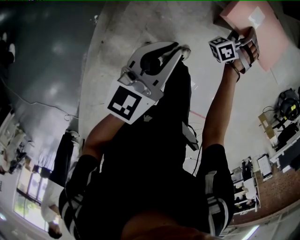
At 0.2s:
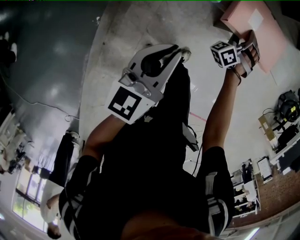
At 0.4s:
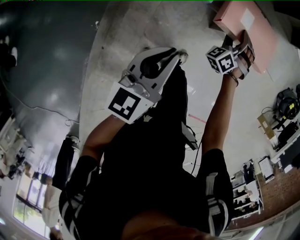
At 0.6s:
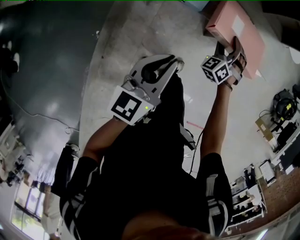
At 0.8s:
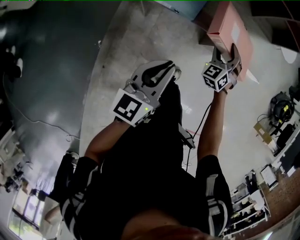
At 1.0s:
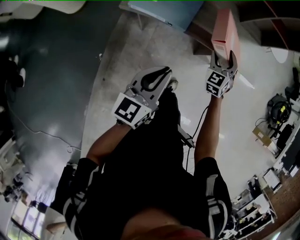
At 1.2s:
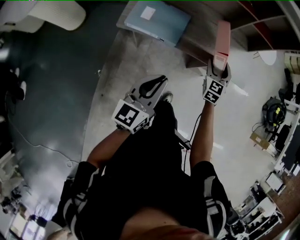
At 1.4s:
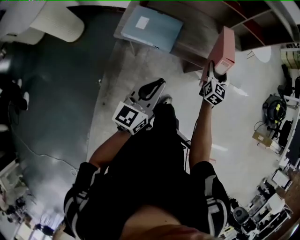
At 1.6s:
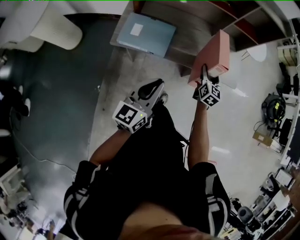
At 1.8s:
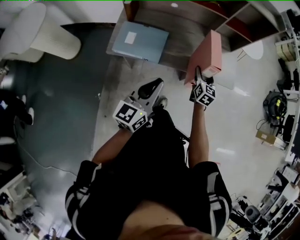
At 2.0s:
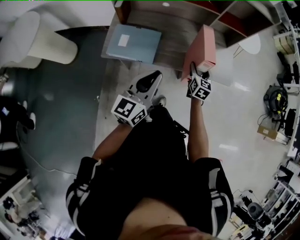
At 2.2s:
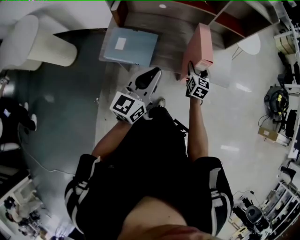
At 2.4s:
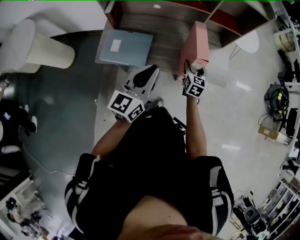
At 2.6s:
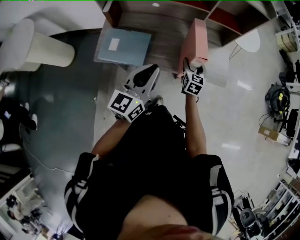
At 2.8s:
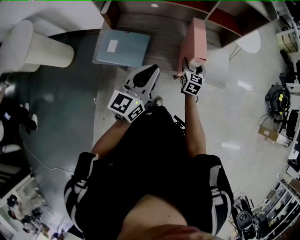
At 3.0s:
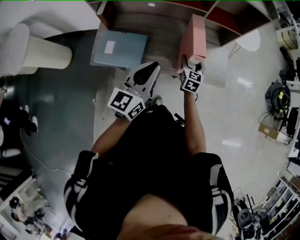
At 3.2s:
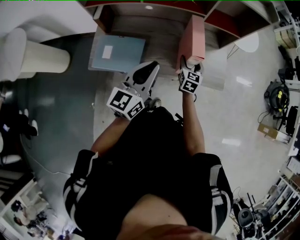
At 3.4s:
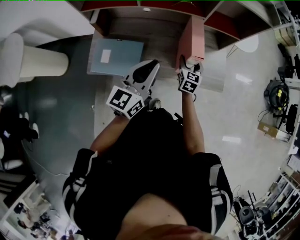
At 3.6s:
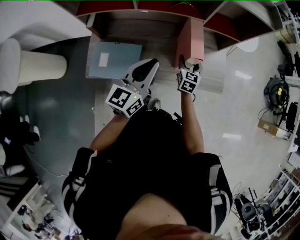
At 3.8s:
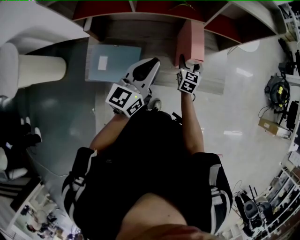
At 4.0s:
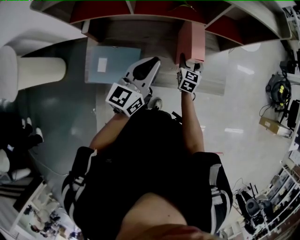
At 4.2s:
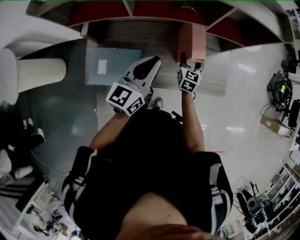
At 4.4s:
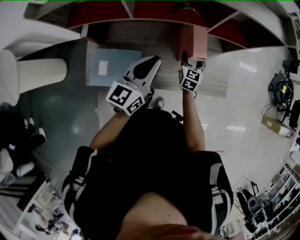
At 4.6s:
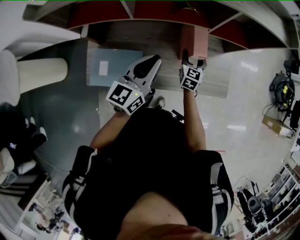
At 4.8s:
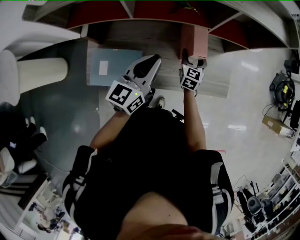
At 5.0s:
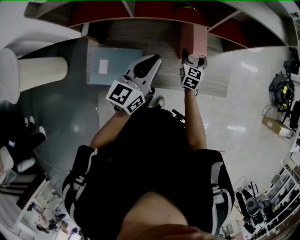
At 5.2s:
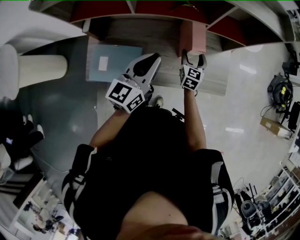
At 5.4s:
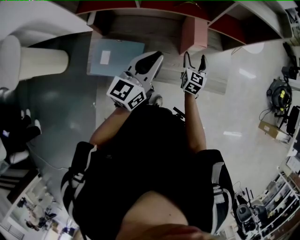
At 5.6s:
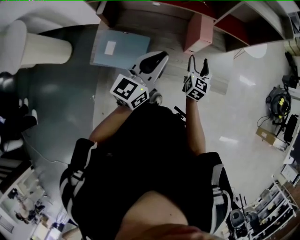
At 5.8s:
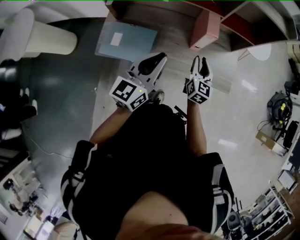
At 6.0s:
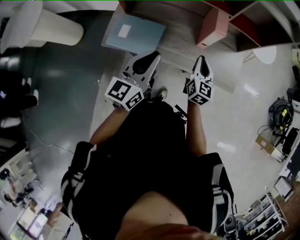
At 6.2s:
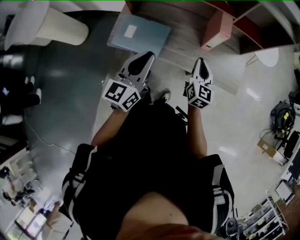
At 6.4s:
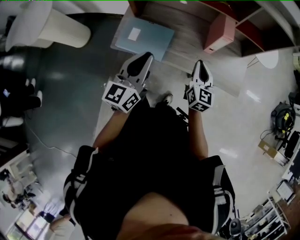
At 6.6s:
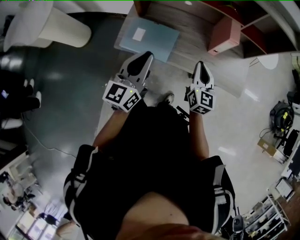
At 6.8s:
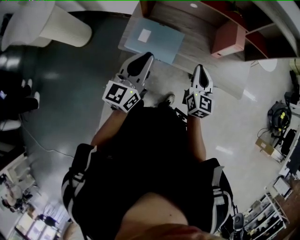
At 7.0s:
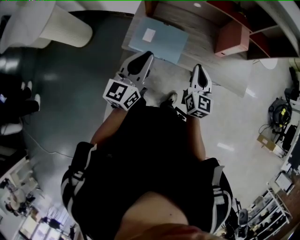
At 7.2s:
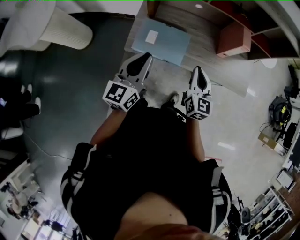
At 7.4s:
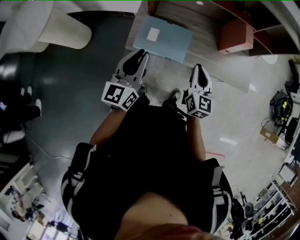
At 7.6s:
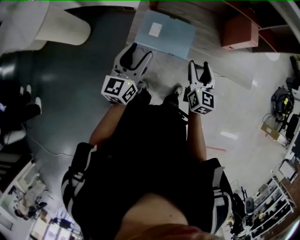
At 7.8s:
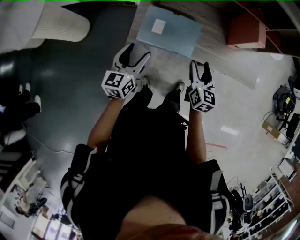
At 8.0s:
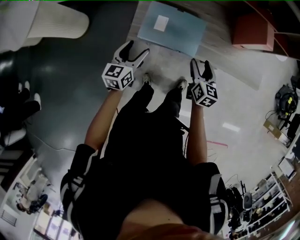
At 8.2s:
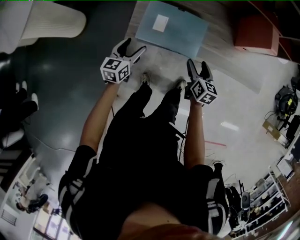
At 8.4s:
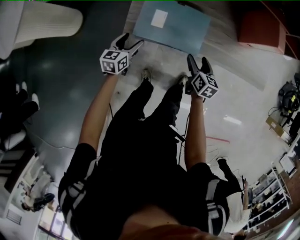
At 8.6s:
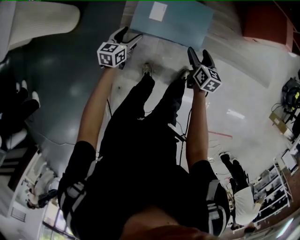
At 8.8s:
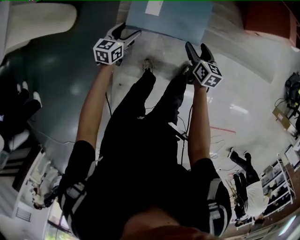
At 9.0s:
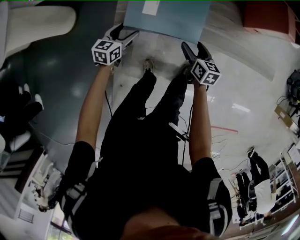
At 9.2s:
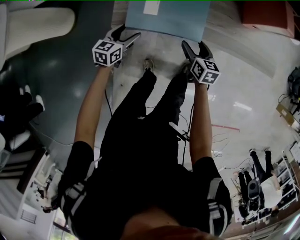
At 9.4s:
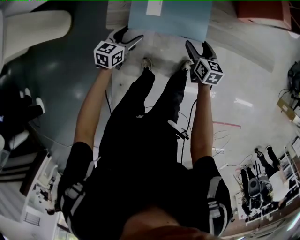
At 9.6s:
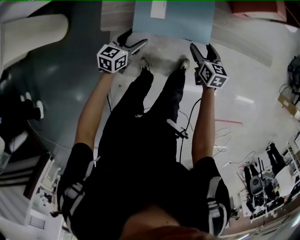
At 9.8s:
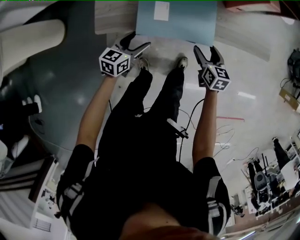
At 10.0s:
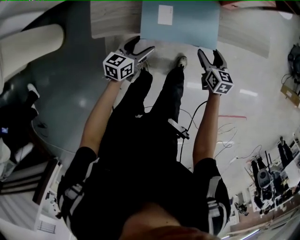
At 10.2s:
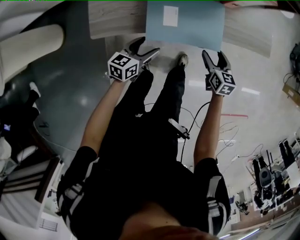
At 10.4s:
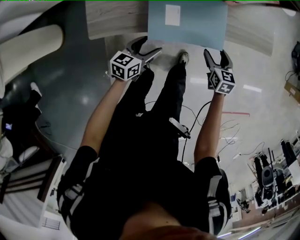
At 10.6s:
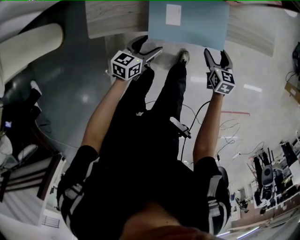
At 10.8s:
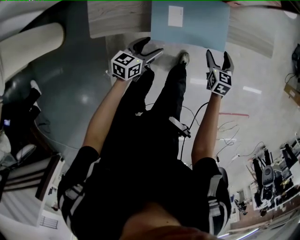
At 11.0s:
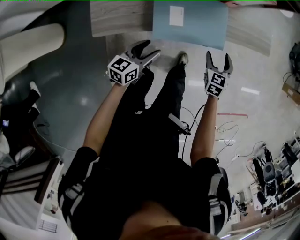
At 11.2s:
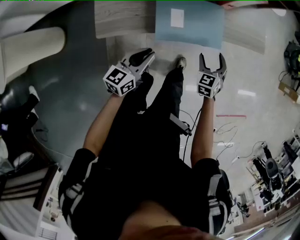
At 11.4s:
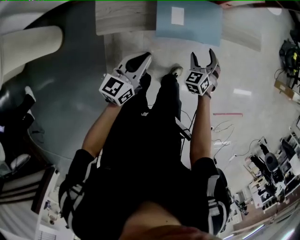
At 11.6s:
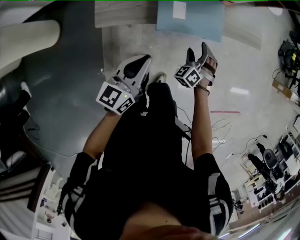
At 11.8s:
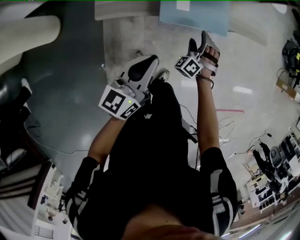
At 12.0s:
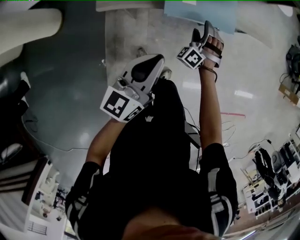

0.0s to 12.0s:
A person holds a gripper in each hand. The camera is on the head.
0.0s to 1.6s: The grippers both shift upward by approximately 20 cm. The right gripper rolls clockwise, seen from behind, by some 90 degrees.
1.6s to 3.0s: The right gripper heads forward, covering about 10 cm; the left gripper travels forward and to the right by roughly 20 cm.
3.0s to 4.4s: Both grippers move forward, approximately 15 cm.
4.4s to 6.0s: The left gripper moves backward, about 20 cm. Meanwhile the right gripper travels backward and upward by approximately 20 cm, and closes up.
6.0s to 7.6s: The two grippers go approximately 25 cm to the left. The right gripper opens; the left gripper opens its fingers.
7.6s to 9.0s: Both grippers move downward, some 30 cm. The left gripper changes its angle by some 30 degrees. The right gripper rotates approximately 30 degrees.
9.0s to 10.4s: The two grippers go approximately 20 cm to the right.
10.4s to 12.0s: The right gripper is displaced to the left and backward by some 10 cm, and rolls counterclockwise, seen from behind, by about 70 degrees. The left gripper is displaced upward and backward by approximately 25 cm, swivels approximately 30 degrees, and closes its fingers.

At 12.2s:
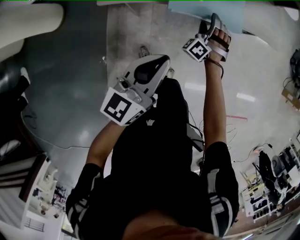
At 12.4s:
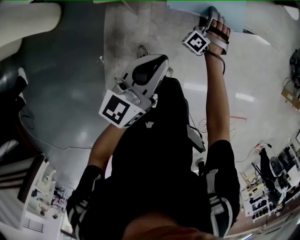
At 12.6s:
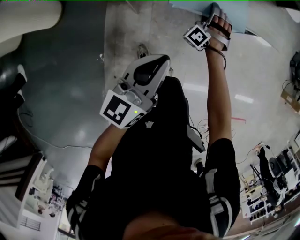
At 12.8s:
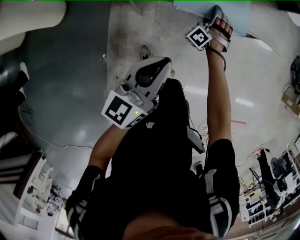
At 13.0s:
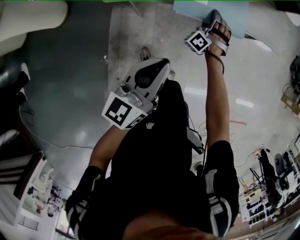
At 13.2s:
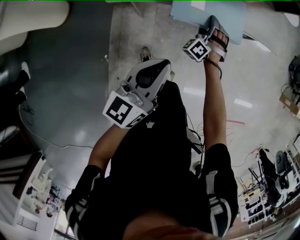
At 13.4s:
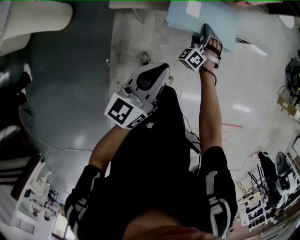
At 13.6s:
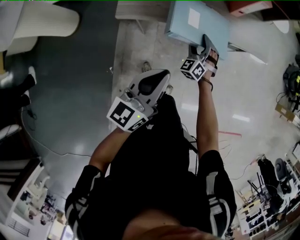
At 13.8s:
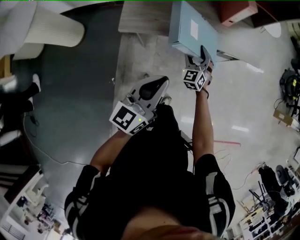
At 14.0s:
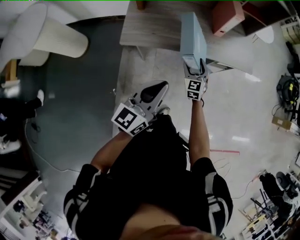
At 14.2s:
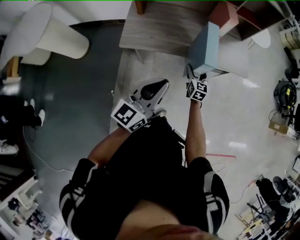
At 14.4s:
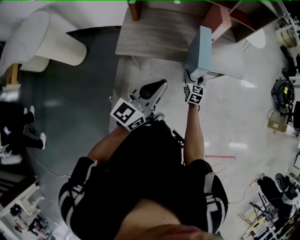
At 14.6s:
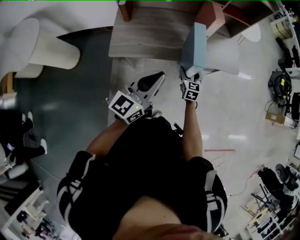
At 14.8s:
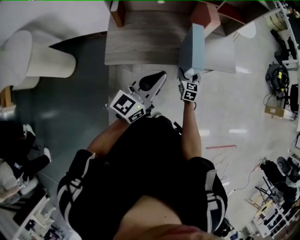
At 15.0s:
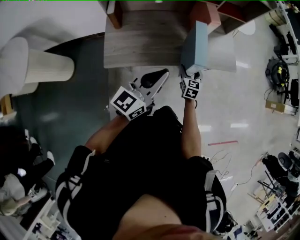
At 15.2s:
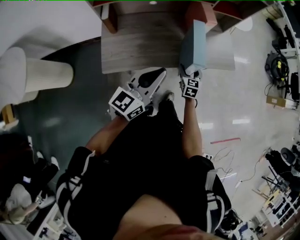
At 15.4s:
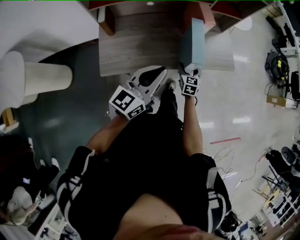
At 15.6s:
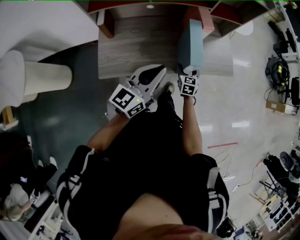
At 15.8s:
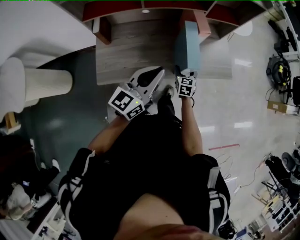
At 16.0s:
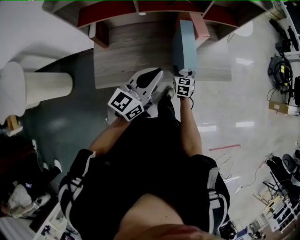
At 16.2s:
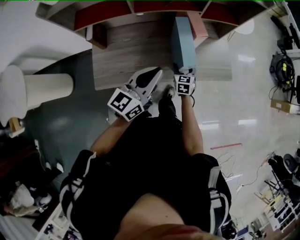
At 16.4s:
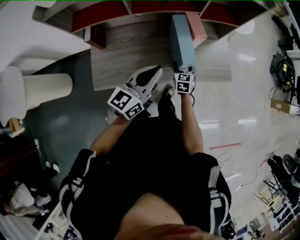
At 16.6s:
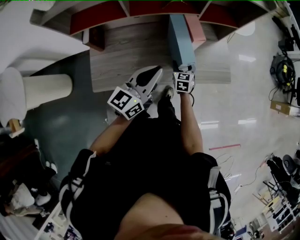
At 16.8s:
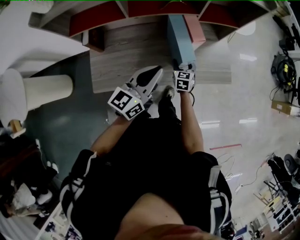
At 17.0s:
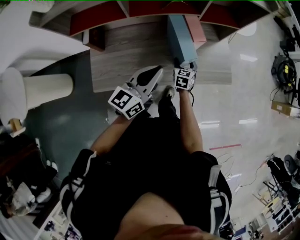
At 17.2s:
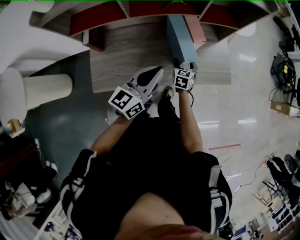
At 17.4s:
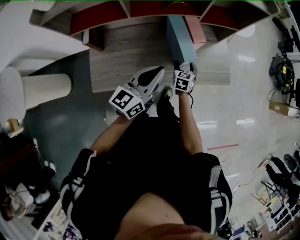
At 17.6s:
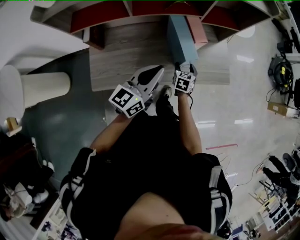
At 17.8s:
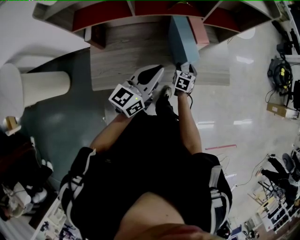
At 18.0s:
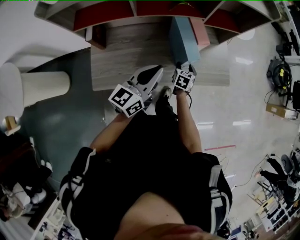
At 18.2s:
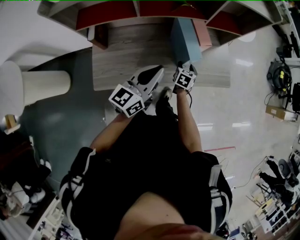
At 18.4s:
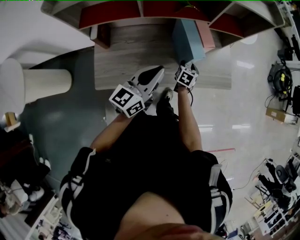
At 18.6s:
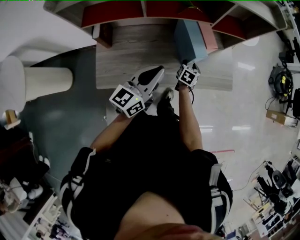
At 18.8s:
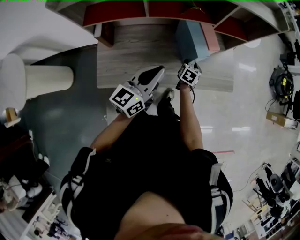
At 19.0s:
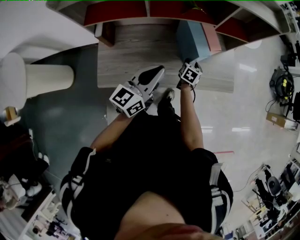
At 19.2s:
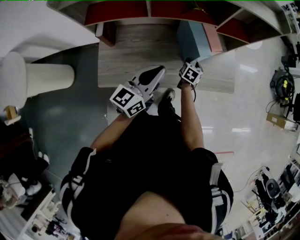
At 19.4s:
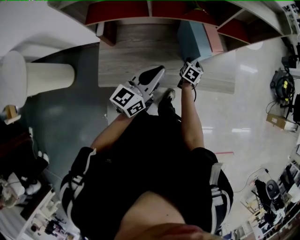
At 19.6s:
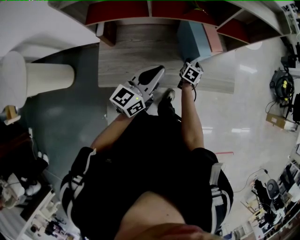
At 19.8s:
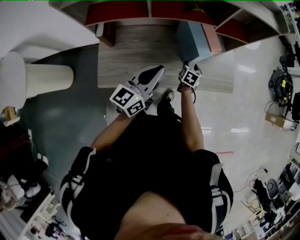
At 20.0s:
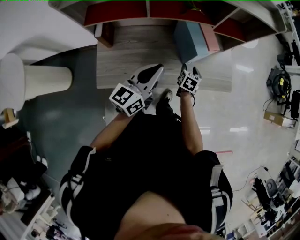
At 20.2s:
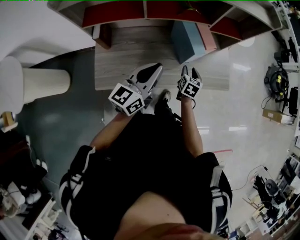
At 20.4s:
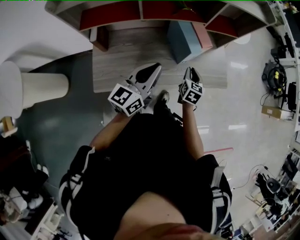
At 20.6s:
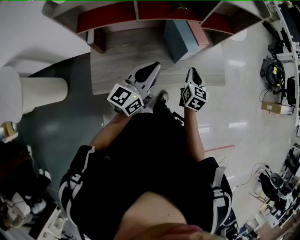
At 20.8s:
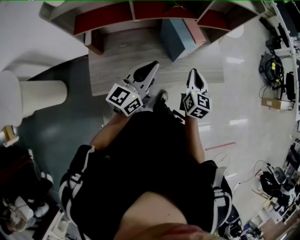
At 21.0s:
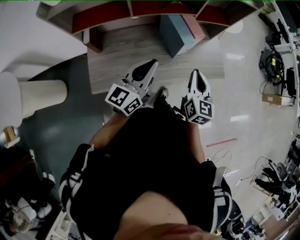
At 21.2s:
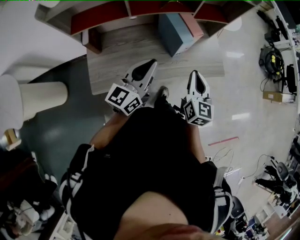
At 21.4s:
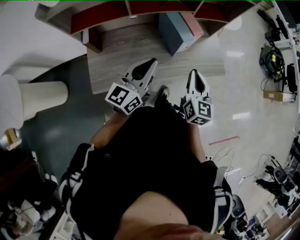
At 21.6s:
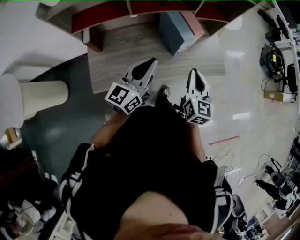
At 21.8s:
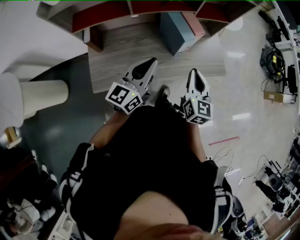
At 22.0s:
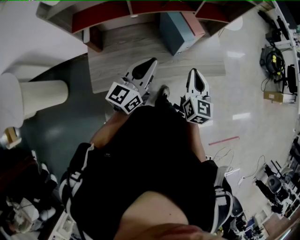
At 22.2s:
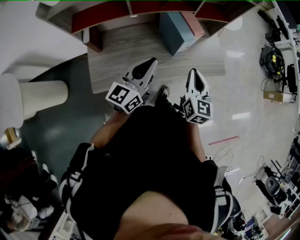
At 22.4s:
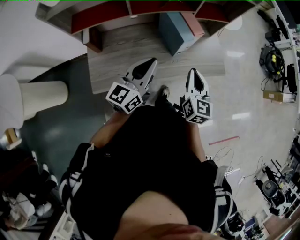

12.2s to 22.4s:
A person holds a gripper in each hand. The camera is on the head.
12.2s to 13.6s: The left gripper shifts approximately 10 cm upward. The right gripper travels upward and backward by approximately 10 cm, and changes its angle by roughly 30 degrees.
13.6s to 15.2s: The right gripper travels to the right, forward and upward by about 15 cm, and rolls clockwise, seen from behind, by some 60 degrees. Meanwhile the left gripper shifts approximately 20 cm forward and upward.
15.2s to 16.6s: Both grippers move forward, approximately 15 cm.
16.6s to 18.0s: The grippers move only a little.
18.0s to 19.4s: There are only small adjustments of the grippers.
19.4s to 21.0s: The right gripper moves upward and backward, approximately 30 cm, tips its fingers upward by approximately 30 degrees, and closes.
21.0s to 22.4s: There are only small adjustments of the grippers.

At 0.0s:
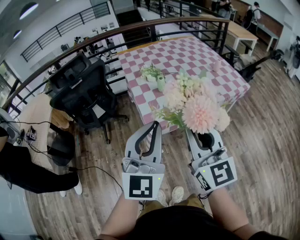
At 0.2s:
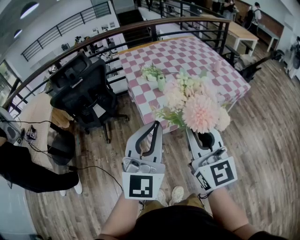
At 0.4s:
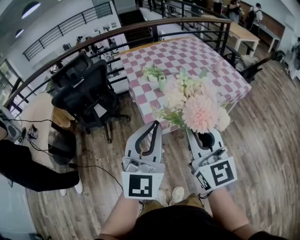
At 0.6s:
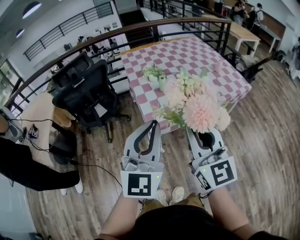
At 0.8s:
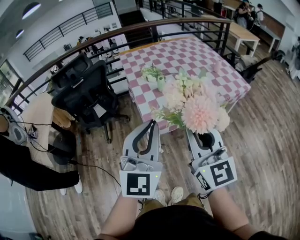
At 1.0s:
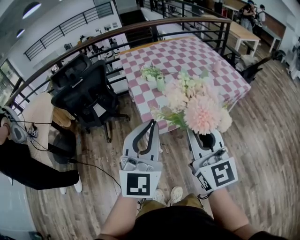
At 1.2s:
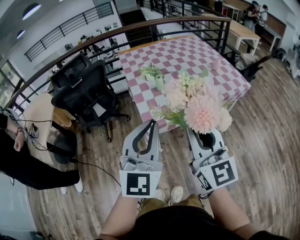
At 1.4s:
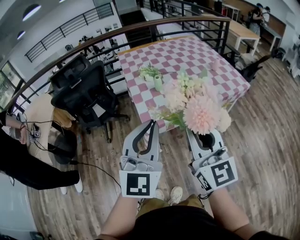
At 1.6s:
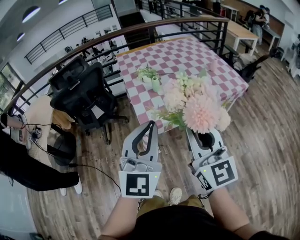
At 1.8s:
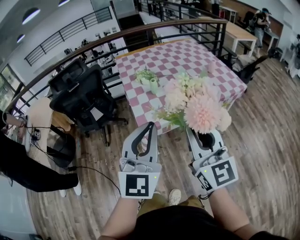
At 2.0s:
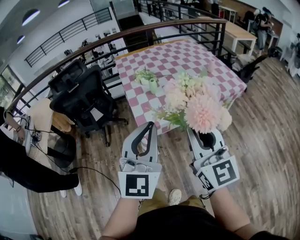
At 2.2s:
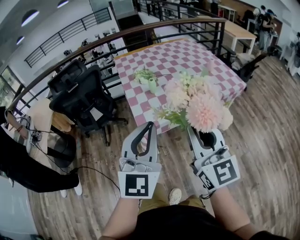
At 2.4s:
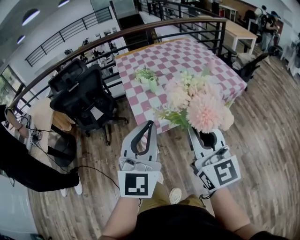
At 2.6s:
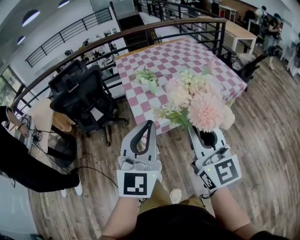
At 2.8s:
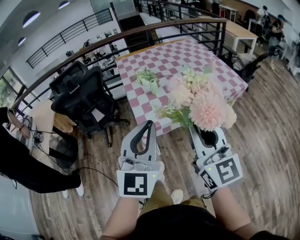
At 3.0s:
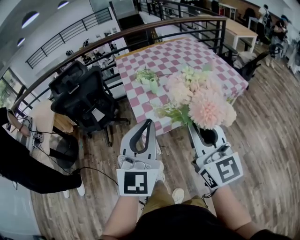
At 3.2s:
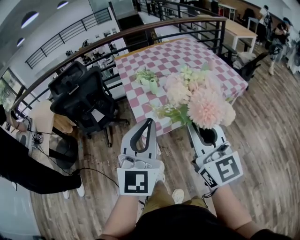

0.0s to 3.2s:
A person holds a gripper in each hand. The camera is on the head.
0.0s to 1.6s: The right gripper goes some 5 cm to the right.
1.6s to 3.2s: There are only small adjustments of the grippers.
